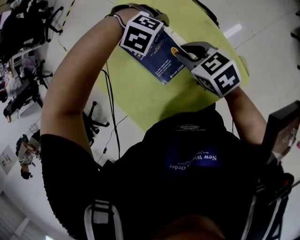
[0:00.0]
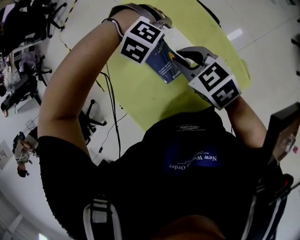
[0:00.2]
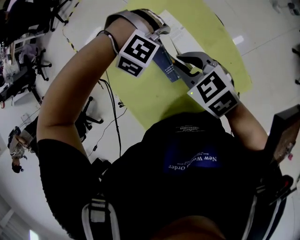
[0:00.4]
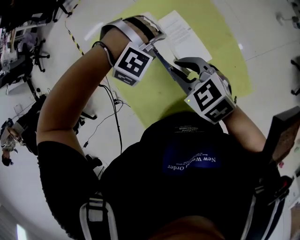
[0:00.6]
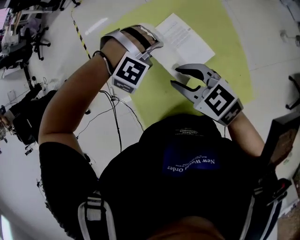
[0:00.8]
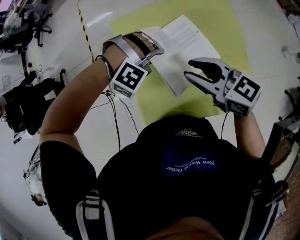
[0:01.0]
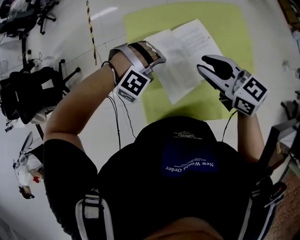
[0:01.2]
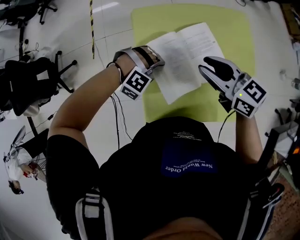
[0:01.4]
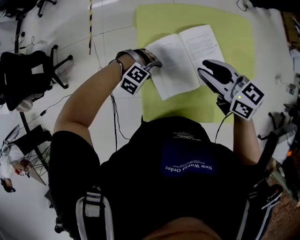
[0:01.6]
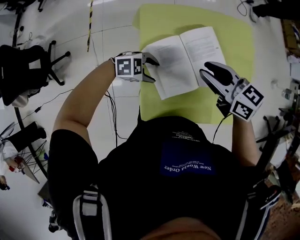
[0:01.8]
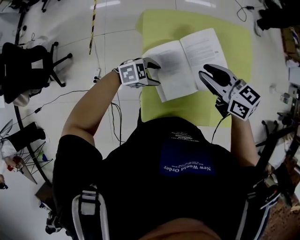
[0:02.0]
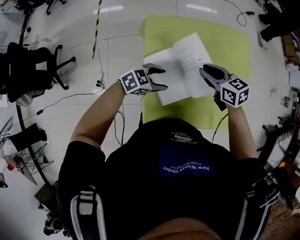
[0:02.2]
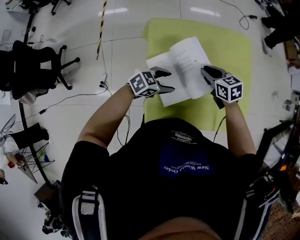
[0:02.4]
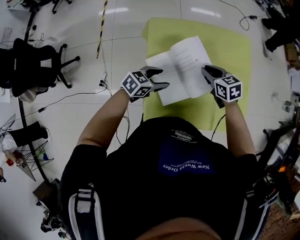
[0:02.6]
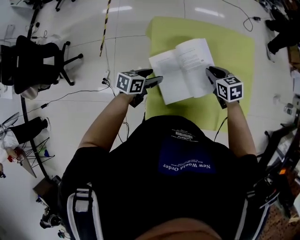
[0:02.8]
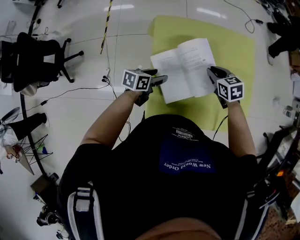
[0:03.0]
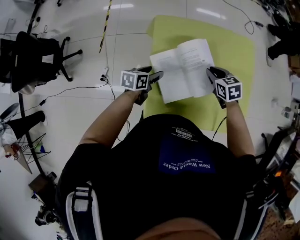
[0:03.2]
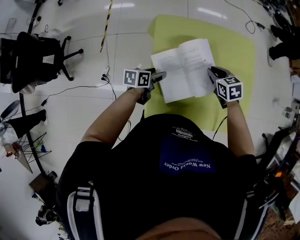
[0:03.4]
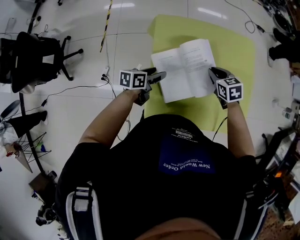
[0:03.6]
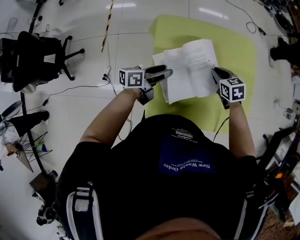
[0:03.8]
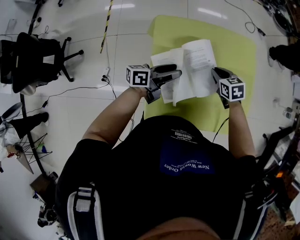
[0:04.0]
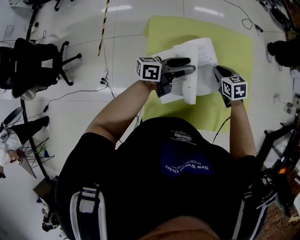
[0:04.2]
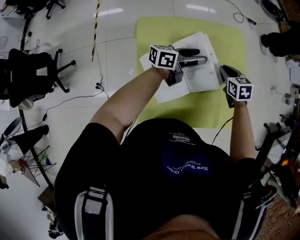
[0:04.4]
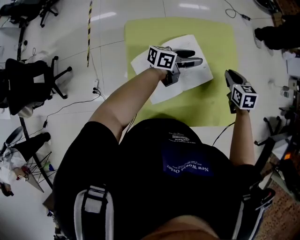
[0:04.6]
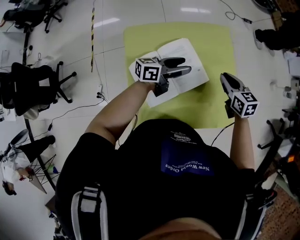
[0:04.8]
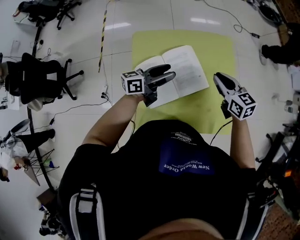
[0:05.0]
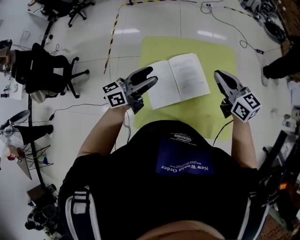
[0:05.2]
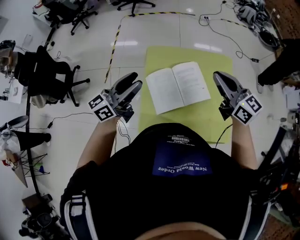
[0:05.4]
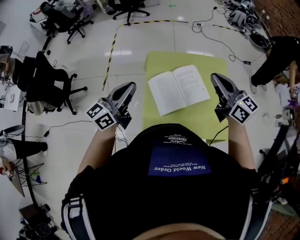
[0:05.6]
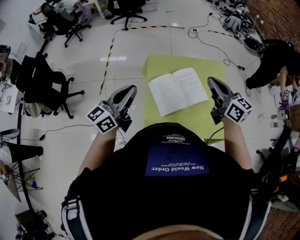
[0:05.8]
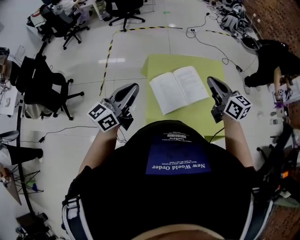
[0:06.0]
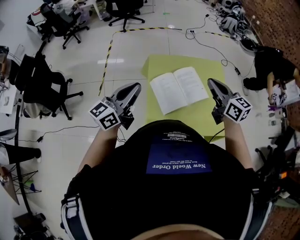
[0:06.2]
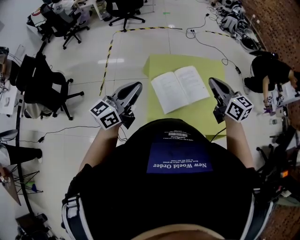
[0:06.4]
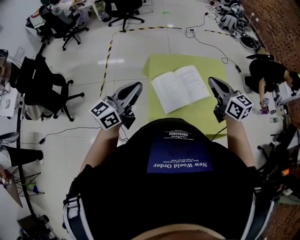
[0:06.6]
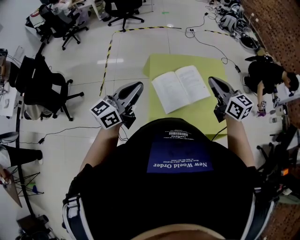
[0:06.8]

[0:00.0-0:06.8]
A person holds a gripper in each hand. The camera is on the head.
0:00.0 to 0:01.4: The left gripper travels upward and back again, approximately 10 cm each way, changes its angle by approximately 40 degrees, and closes up. Meanwhile the right gripper moves approximately 20 cm, and turns by about 30 degrees.
0:01.4 to 0:02.8: The right gripper travels downward by roughly 15 cm, and rotates some 30 degrees. Meanwhile the left gripper shifts by approximately 5 cm, rotates around the line of its fingers by approximately 120 degrees, counterclockwise from behind, and opens up.
0:02.8 to 0:04.0: The left gripper is displaced upward and to the right by some 10 cm, and points its fingers some 30 degrees further upward.
0:04.0 to 0:05.4: Both grippers move upward, some 25 cm. The left gripper turns by about 40 degrees, while the right gripper tips its fingers upward by roughly 50 degrees.
0:05.4 to 0:06.8: Both grippers travel together to the left and backward, roughly 10 cm. The left gripper closes its fingers.

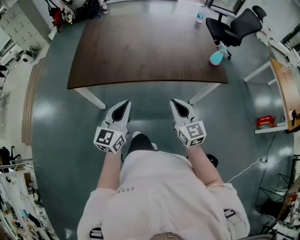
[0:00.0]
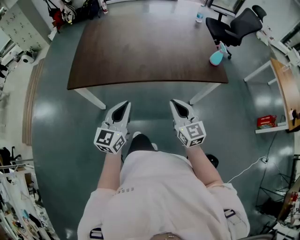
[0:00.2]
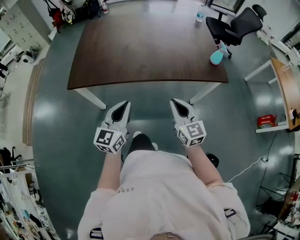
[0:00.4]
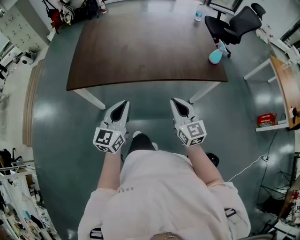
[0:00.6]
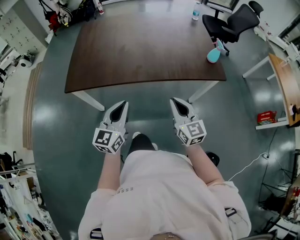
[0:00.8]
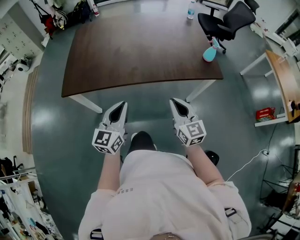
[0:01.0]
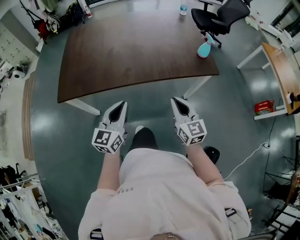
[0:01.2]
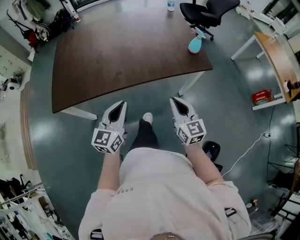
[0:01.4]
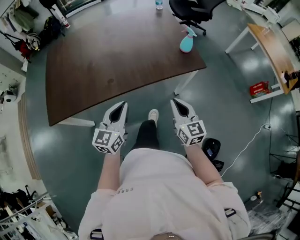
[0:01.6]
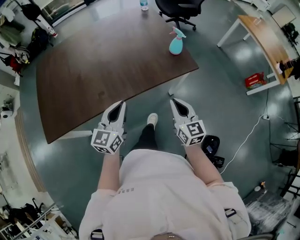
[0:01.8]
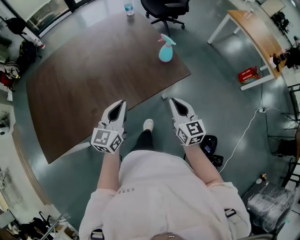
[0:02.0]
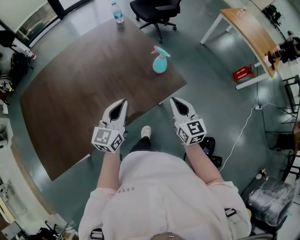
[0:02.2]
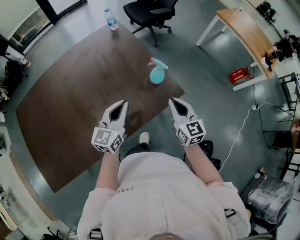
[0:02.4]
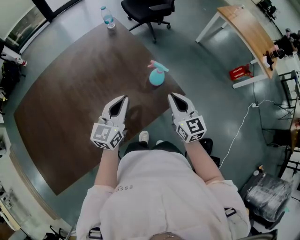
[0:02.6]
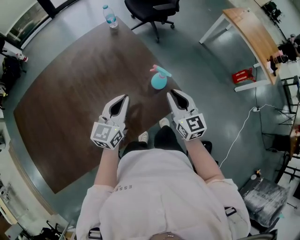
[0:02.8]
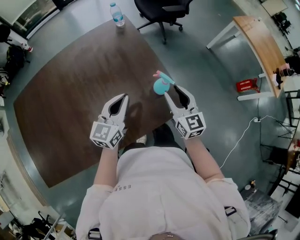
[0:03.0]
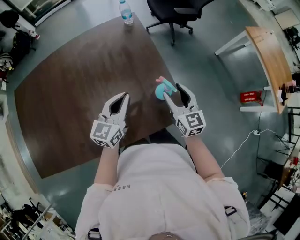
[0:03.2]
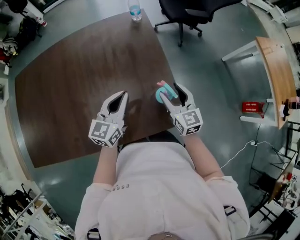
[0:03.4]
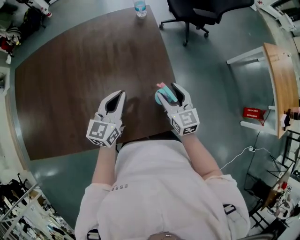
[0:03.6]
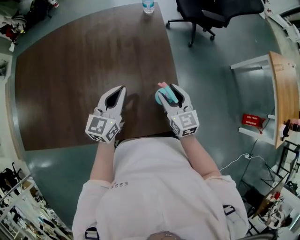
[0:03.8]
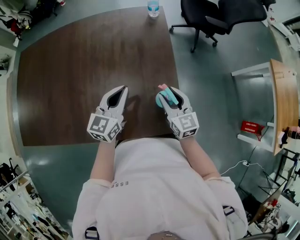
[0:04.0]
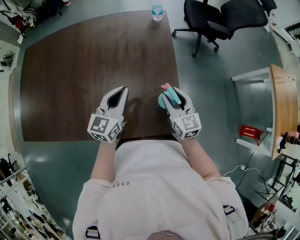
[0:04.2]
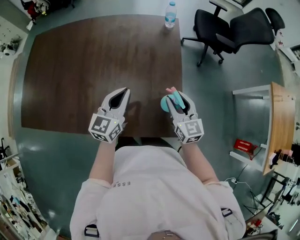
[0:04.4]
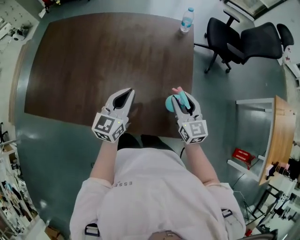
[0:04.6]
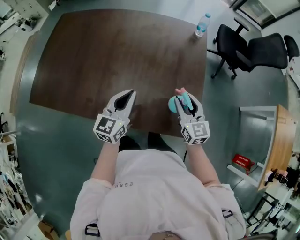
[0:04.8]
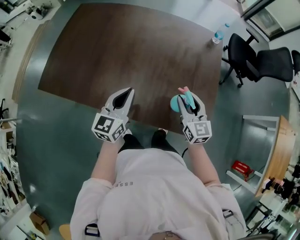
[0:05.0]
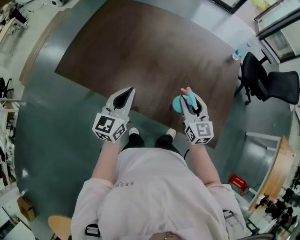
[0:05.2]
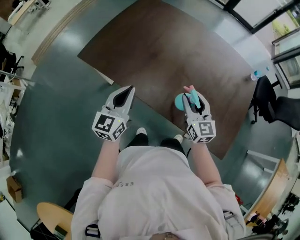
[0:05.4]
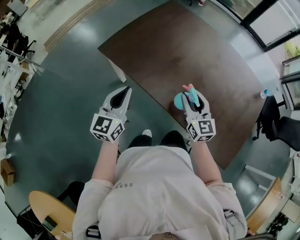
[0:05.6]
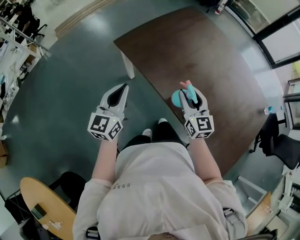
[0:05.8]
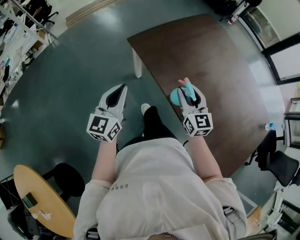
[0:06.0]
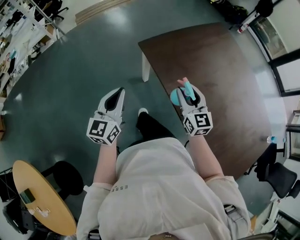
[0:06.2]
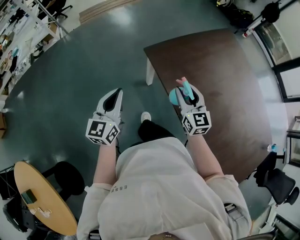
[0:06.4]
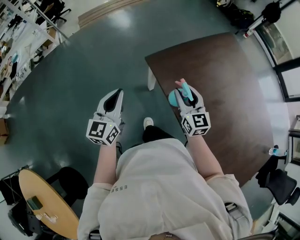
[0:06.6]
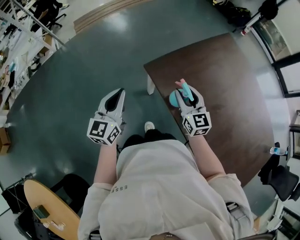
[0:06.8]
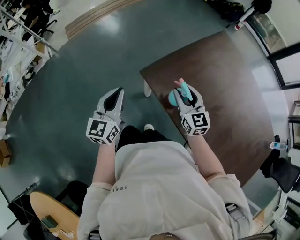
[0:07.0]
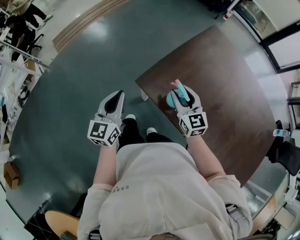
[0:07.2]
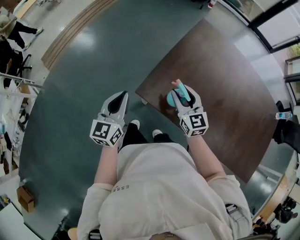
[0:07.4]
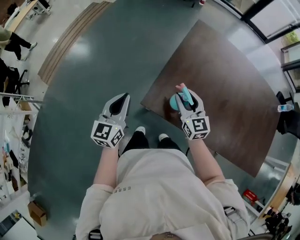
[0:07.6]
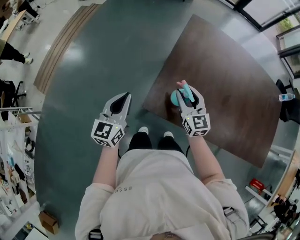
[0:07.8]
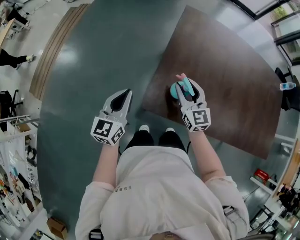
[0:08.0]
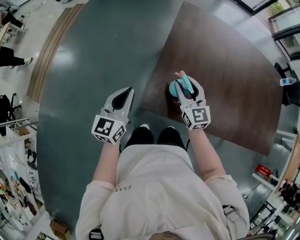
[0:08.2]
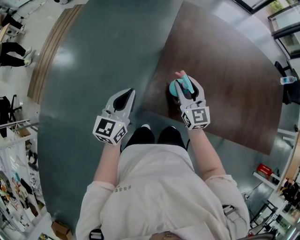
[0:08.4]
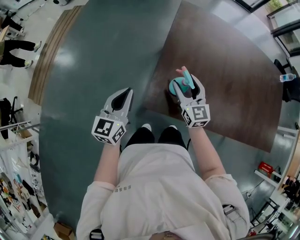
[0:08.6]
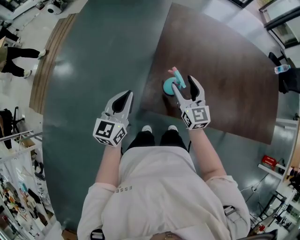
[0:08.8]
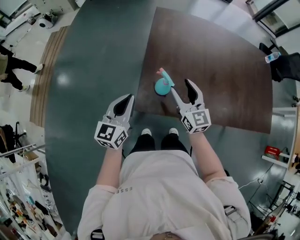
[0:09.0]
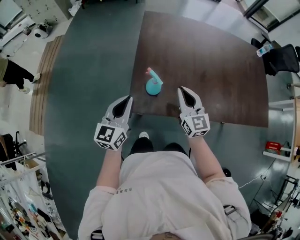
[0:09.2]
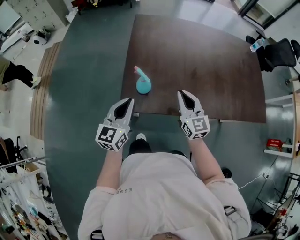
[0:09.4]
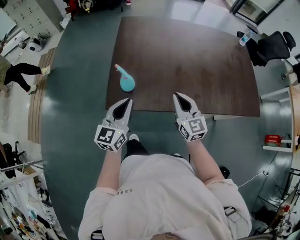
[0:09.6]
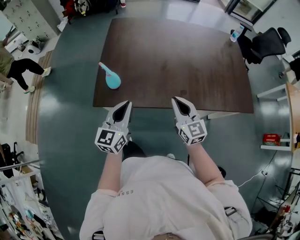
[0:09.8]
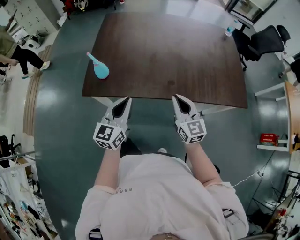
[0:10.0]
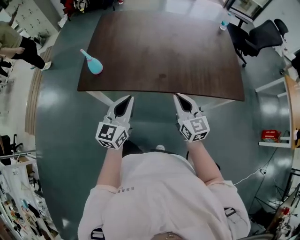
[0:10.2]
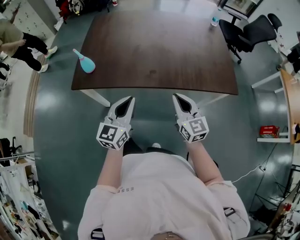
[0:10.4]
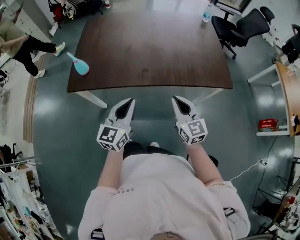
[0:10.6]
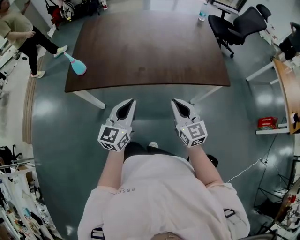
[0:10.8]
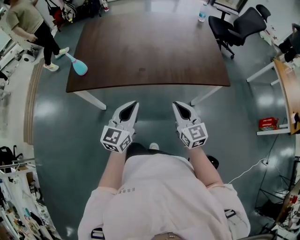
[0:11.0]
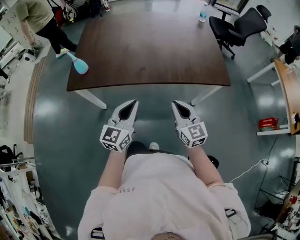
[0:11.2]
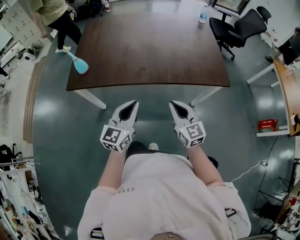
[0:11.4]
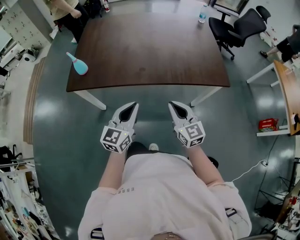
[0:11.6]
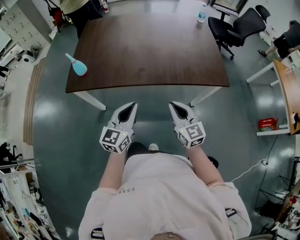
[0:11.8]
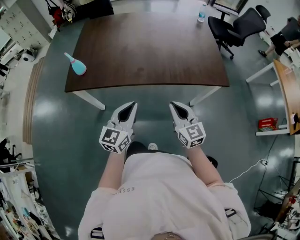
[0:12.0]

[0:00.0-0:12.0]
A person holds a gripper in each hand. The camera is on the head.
0:00.0 to 0:01.6: The right gripper moves to the right, about 10 cm, and changes its angle by some 20 degrees; the left gripper moves to the right and forward, about 15 cm.
0:01.6 to 0:03.0: Both grippers travel together forward, about 40 cm. The right gripper opens up.
0:03.0 to 0:04.4: The right gripper shifts by roughly 10 cm, and changes its angle by some 30 degrees; the left gripper rotates roughly 30 degrees.
0:04.4 to 0:06.0: The two grippers travel together, some 60 cm. The left gripper swivels approximately 60 degrees. Meanwhile the right gripper swivels some 50 degrees.
0:06.0 to 0:07.6: The left gripper ends up approximately 40 cm from where it was, and turns by some 30 degrees, while the right gripper ends up about 30 cm from where it was, and rotates about 20 degrees.
0:07.6 to 0:09.0: The right gripper opens its fingers. The left gripper is displaced to the right by approximately 5 cm, and rotates about 20 degrees.
0:09.0 to 0:10.4: Both grippers are carried to the right and backward, about 50 cm. The right gripper closes.
0:10.4 to 0:12.0: The right gripper shifts approximately 10 cm backward and to the right, while the left gripper moves to the right, approximately 5 cm.

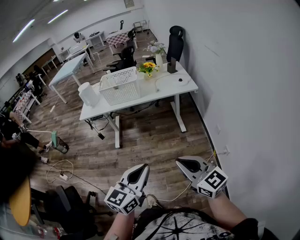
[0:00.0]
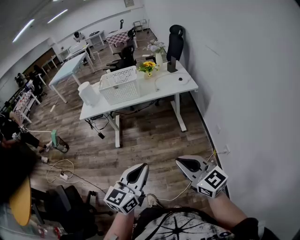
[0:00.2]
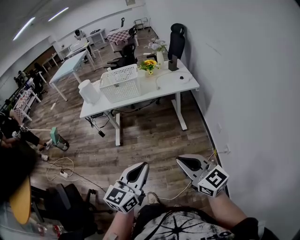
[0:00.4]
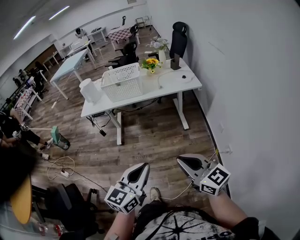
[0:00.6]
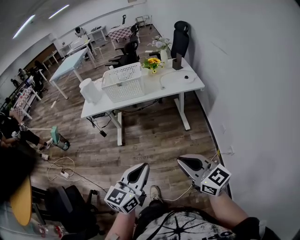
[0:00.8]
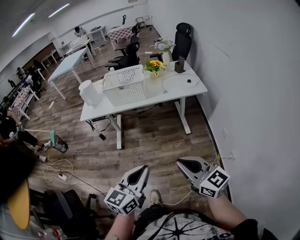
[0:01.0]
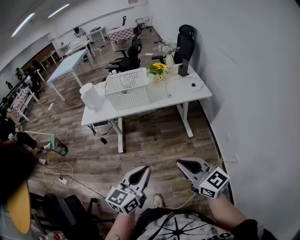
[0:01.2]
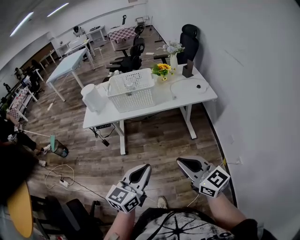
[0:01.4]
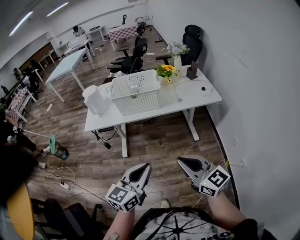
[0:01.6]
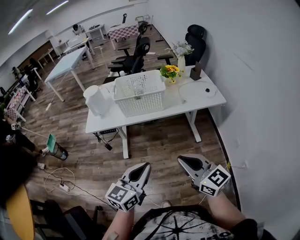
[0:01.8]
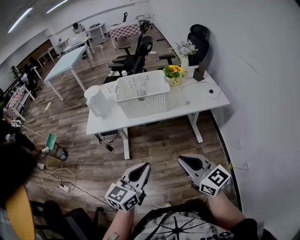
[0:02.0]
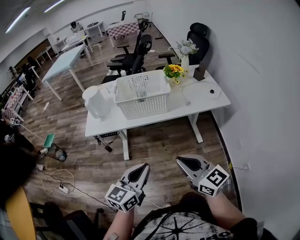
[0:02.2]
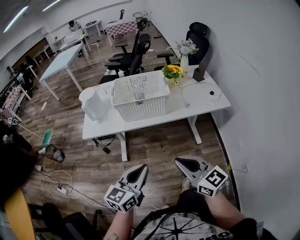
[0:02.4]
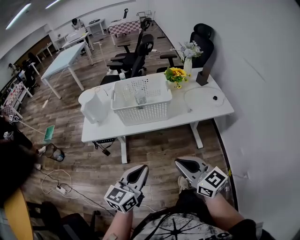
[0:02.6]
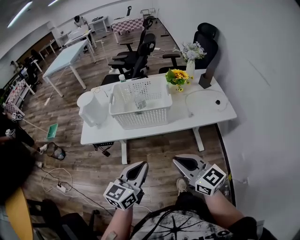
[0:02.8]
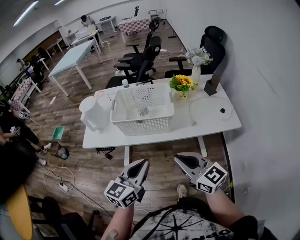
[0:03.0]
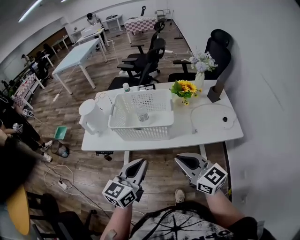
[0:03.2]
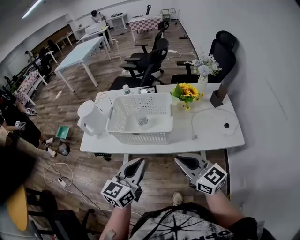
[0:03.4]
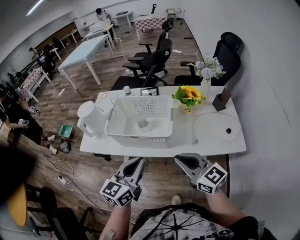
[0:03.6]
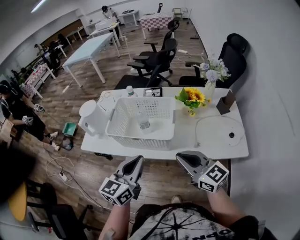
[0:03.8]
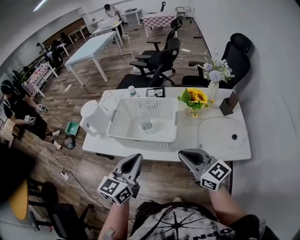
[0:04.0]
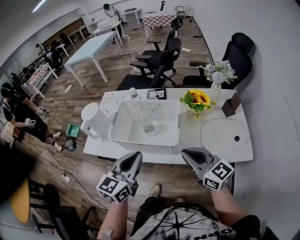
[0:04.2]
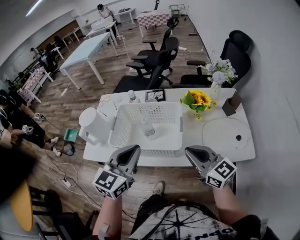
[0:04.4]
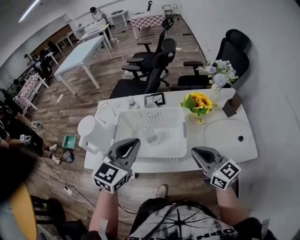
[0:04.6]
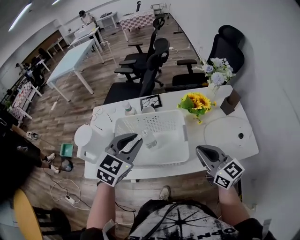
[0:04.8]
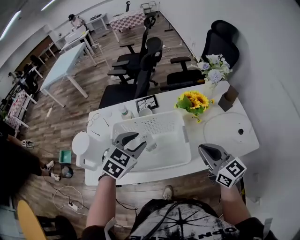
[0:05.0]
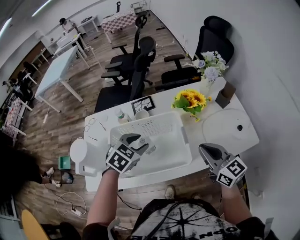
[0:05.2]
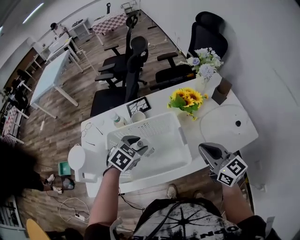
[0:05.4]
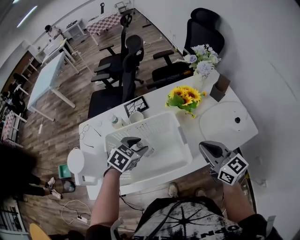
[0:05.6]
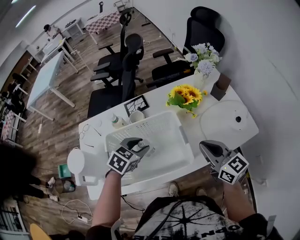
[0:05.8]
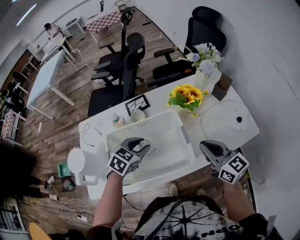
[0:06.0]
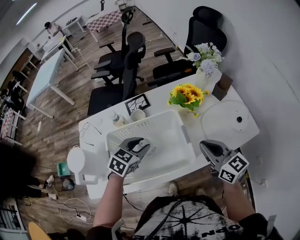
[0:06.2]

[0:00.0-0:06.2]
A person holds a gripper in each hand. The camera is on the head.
0:00.0 to 0:01.6: Both grippers travel together forward and to the left, approximately 25 cm.
0:01.6 to 0:03.2: The two grippers go about 30 cm forward.
0:03.2 to 0:04.6: The grippers both shift forward by some 20 cm. The left gripper turns by roughly 30 degrees.
0:04.6 to 0:06.2: The left gripper shifts approximately 20 cm downward and forward, rotates roughly 30 degrees, and opens; the right gripper goes about 5 cm forward, and rotates some 20 degrees.
